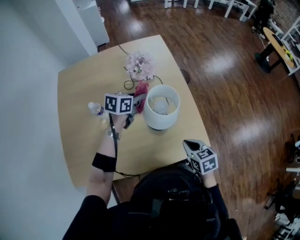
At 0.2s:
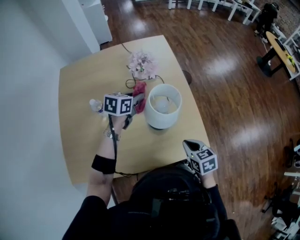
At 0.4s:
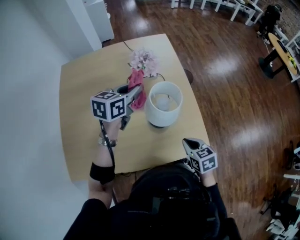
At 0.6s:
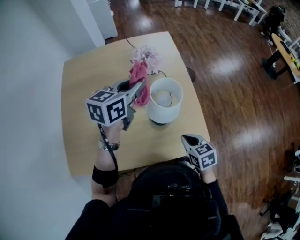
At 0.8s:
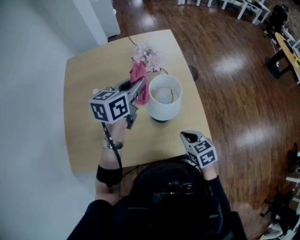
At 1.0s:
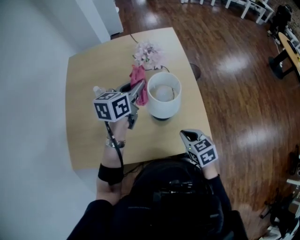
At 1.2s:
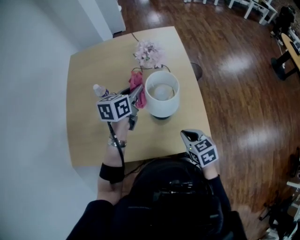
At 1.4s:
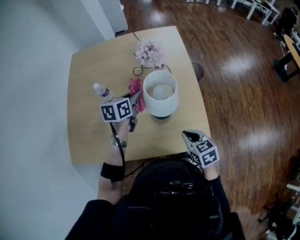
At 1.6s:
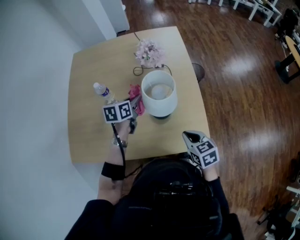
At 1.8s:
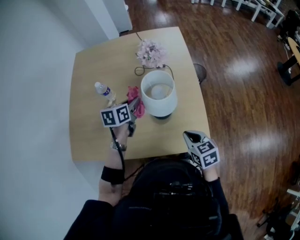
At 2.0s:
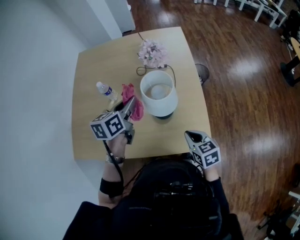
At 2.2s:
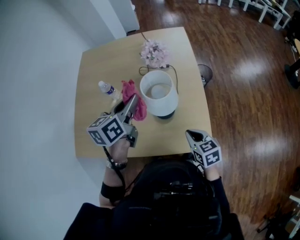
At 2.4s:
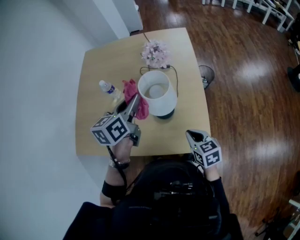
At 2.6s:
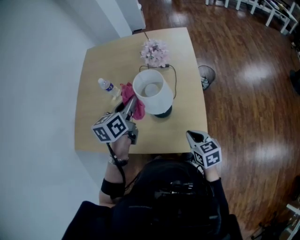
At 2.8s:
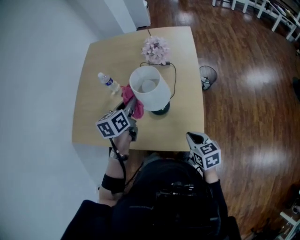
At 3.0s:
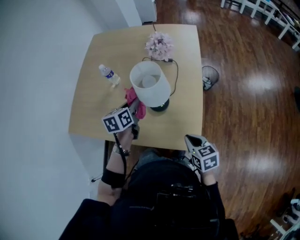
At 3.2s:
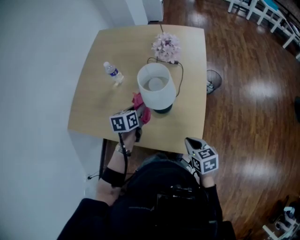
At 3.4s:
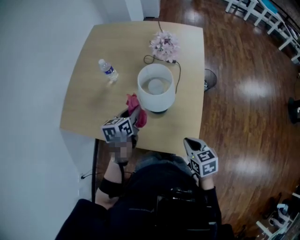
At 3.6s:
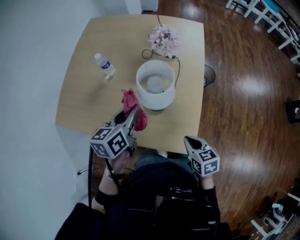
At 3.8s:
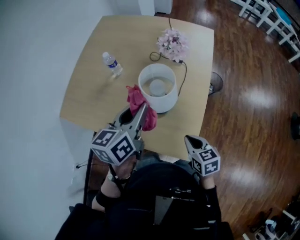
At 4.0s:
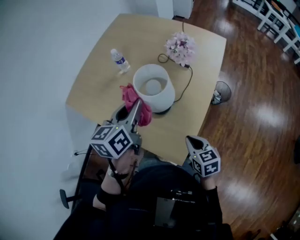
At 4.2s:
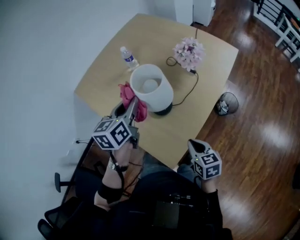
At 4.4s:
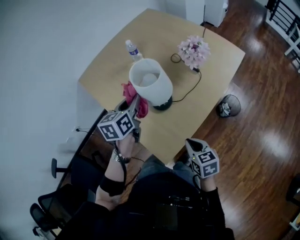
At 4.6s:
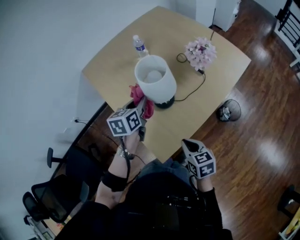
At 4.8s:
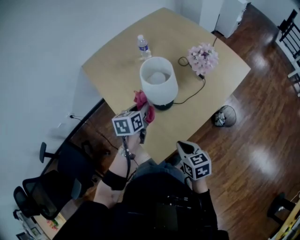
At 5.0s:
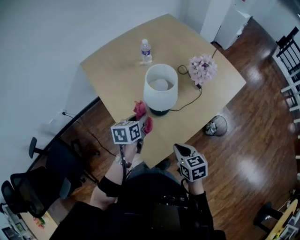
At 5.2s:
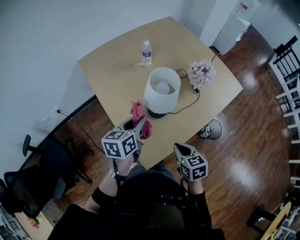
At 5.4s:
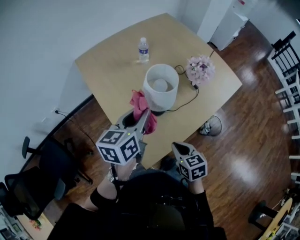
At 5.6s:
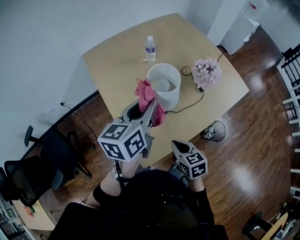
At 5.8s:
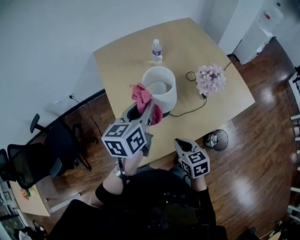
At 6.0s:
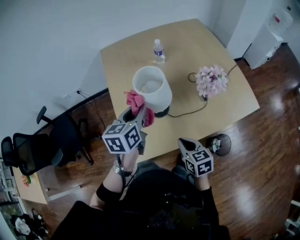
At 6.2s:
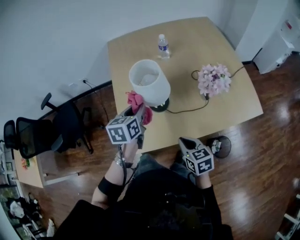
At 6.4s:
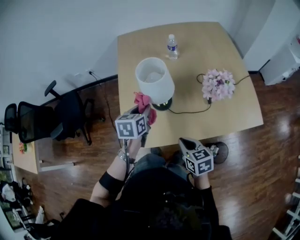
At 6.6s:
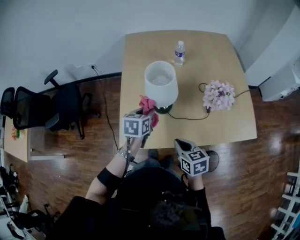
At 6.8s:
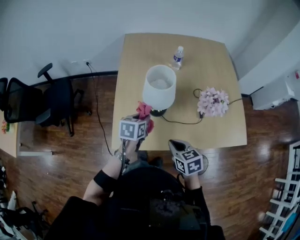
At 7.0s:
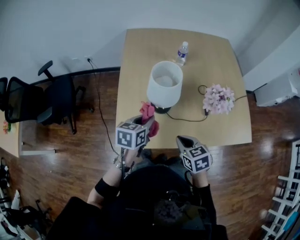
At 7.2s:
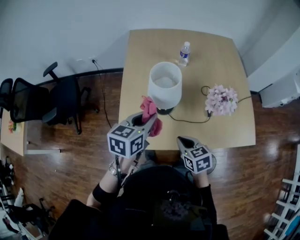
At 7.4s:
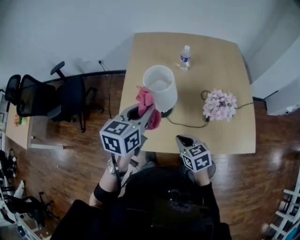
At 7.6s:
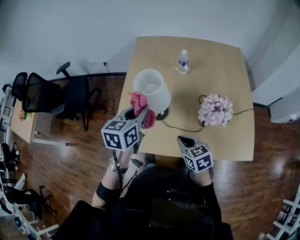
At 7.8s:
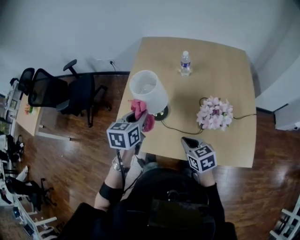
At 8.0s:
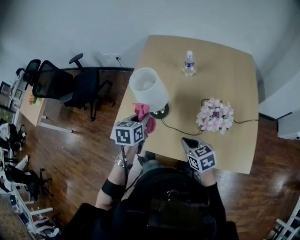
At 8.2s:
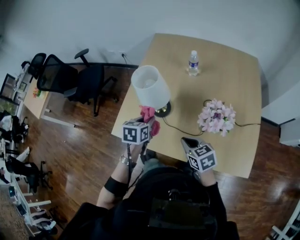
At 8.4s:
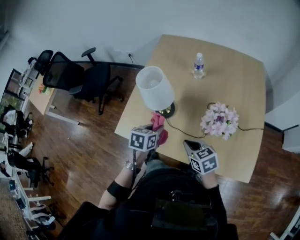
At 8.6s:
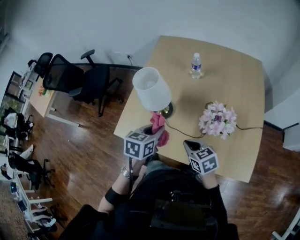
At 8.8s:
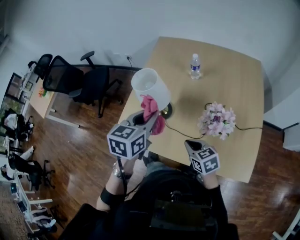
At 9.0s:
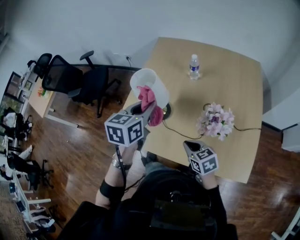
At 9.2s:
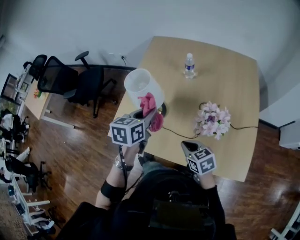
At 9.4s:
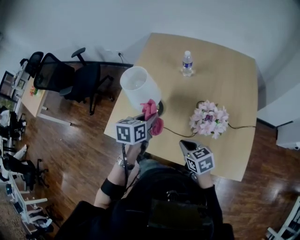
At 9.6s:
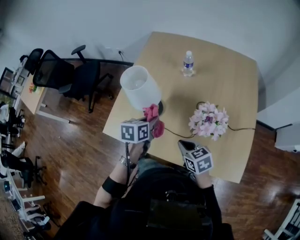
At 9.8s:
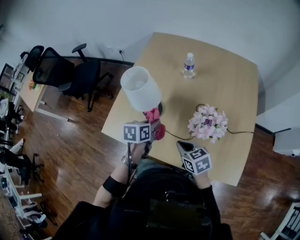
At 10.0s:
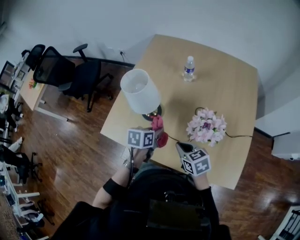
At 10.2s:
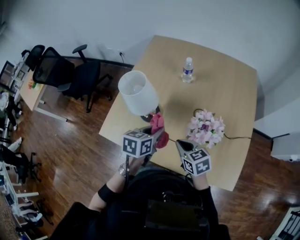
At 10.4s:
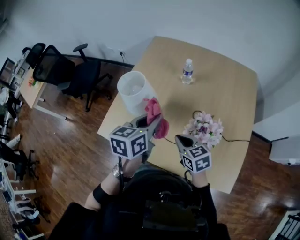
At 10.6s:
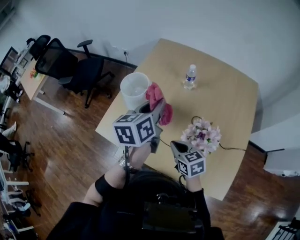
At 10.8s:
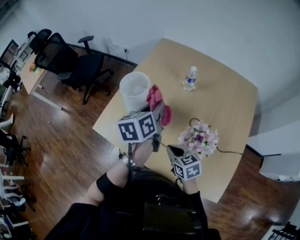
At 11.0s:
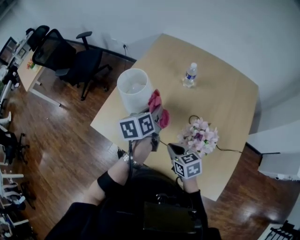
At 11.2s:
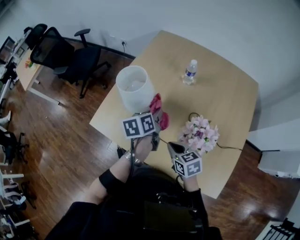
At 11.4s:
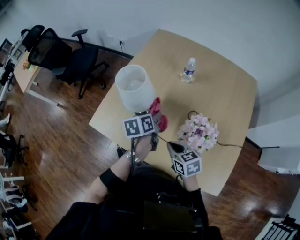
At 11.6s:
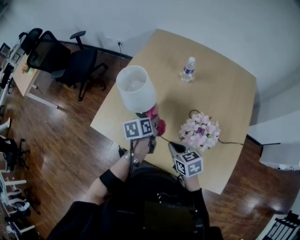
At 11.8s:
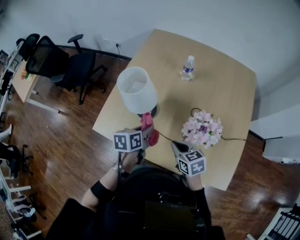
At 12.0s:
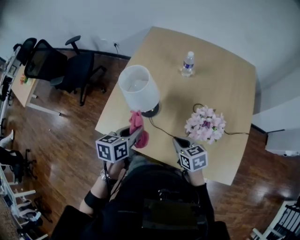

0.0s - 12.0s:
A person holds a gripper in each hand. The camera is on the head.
0.0s - 1.6s: The left gripper moves backward, roughly 5 cm, goes upward and returns, about 15 cm each way, and changes its angle by about 30 degrees.
1.6s - 3.0s: The left gripper travels backward by some 10 cm, travels upward and back again, about 15 cm each way, and turns by about 20 degrees, while the right gripper moves to the right, some 10 cm.
3.0s - 4.4s: The left gripper moves up and down over approximately 20 cm, changing direction 2 times, and rotates some 30 degrees. The right gripper moves some 15 cm, and rotates some 30 degrees.
4.4s - 6.0s: The right gripper changes place by some 10 cm, and swivels some 30 degrees, while the left gripper moves up and down over about 20 cm, changing direction 2 times, and changes its angle by roughly 30 degrees.
6.0s - 7.6s: The left gripper travels to the right by some 5 cm, and goes downward and returns, roughly 15 cm each way. Meanwhile the right gripper heads to the right and forward, covering approximately 10 cm, and changes its angle by approximately 30 degrees.
7.6s - 9.0s: The two grippers go roughly 10 cm to the right. The left gripper travels downward and back again, some 15 cm each way.
9.0s - 10.4s: The left gripper travels to the right by about 5 cm, and moves approximately 20 cm downward and comes back, while the right gripper moves forward, some 5 cm.
10.4s - 12.0s: The right gripper changes place by about 5 cm, while the left gripper moves up and down over roughly 20 cm, changing direction 2 times.

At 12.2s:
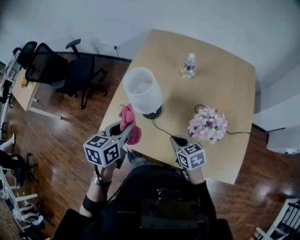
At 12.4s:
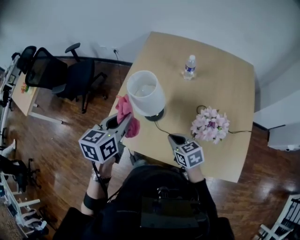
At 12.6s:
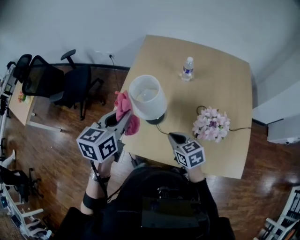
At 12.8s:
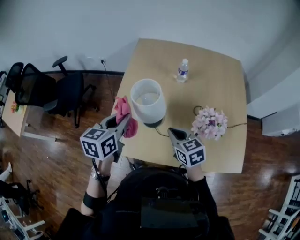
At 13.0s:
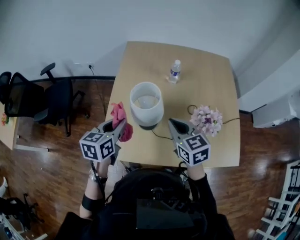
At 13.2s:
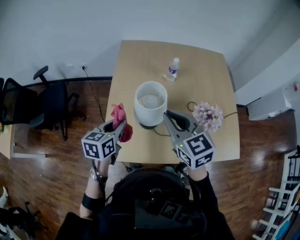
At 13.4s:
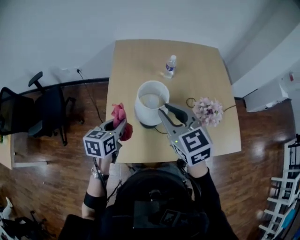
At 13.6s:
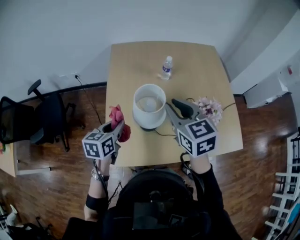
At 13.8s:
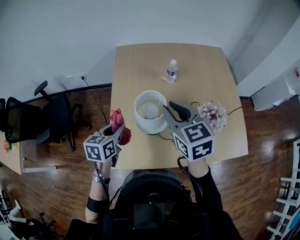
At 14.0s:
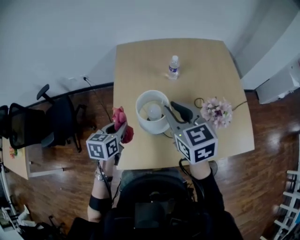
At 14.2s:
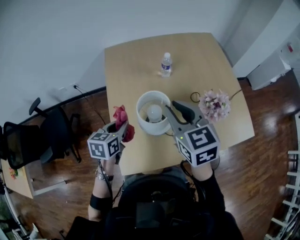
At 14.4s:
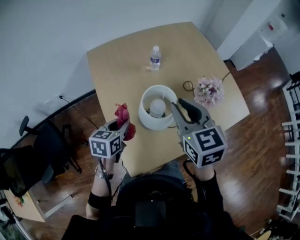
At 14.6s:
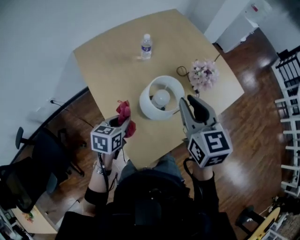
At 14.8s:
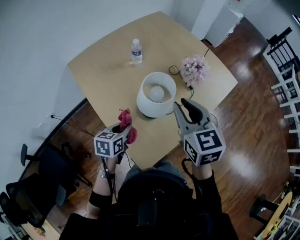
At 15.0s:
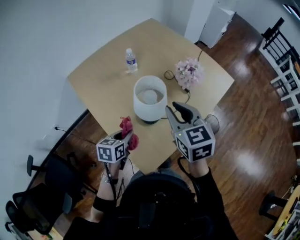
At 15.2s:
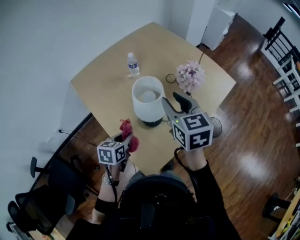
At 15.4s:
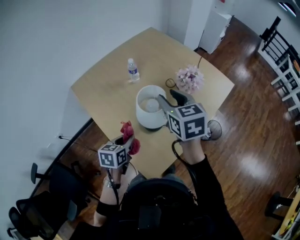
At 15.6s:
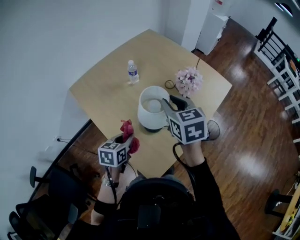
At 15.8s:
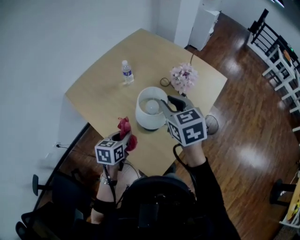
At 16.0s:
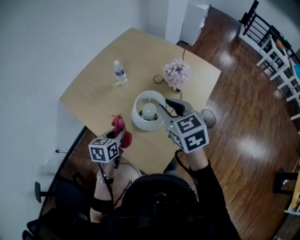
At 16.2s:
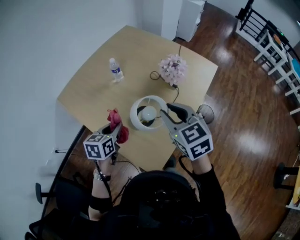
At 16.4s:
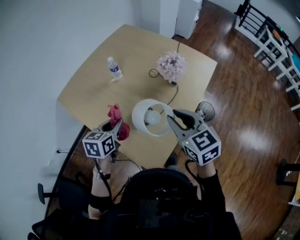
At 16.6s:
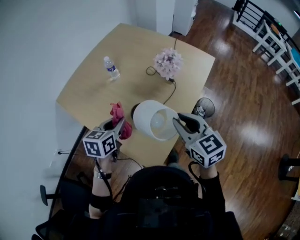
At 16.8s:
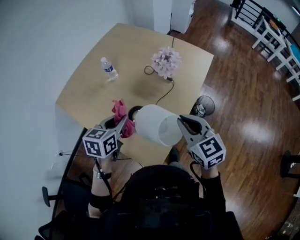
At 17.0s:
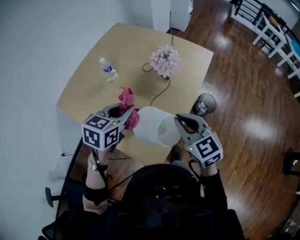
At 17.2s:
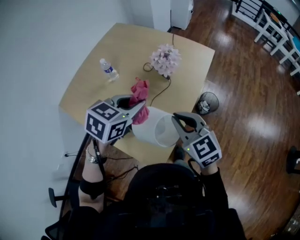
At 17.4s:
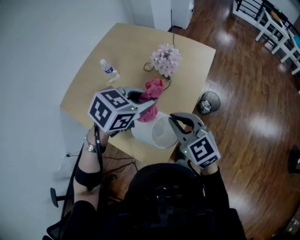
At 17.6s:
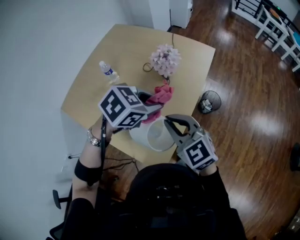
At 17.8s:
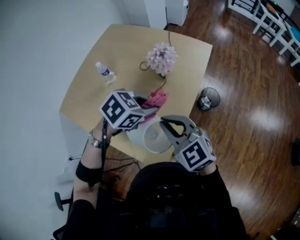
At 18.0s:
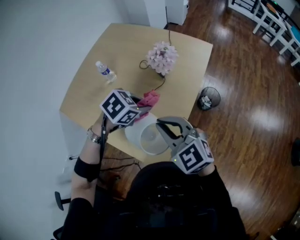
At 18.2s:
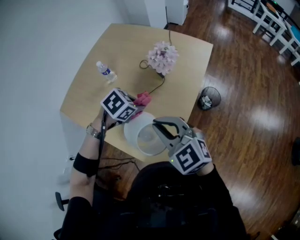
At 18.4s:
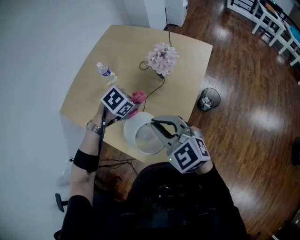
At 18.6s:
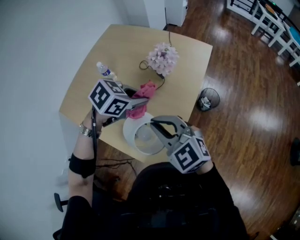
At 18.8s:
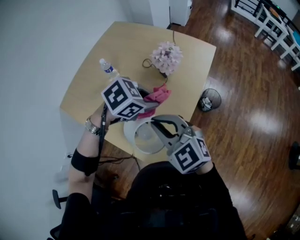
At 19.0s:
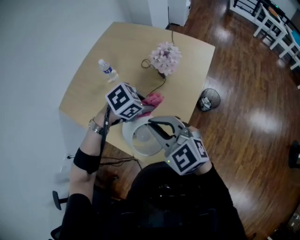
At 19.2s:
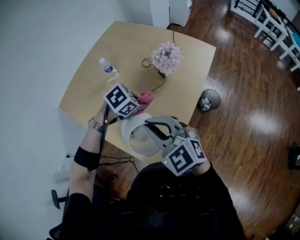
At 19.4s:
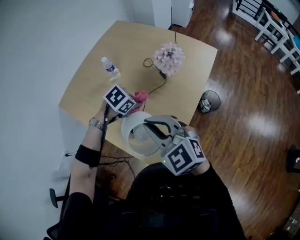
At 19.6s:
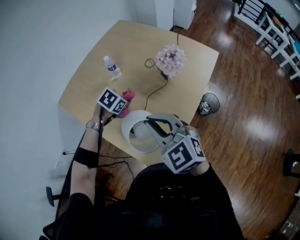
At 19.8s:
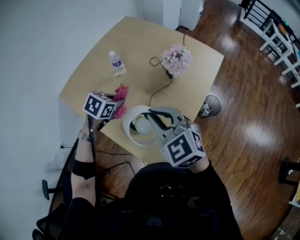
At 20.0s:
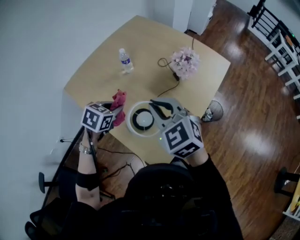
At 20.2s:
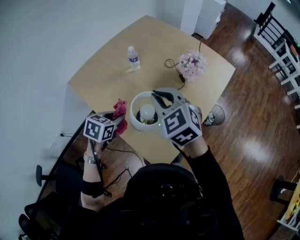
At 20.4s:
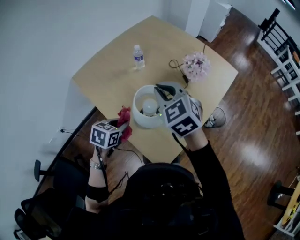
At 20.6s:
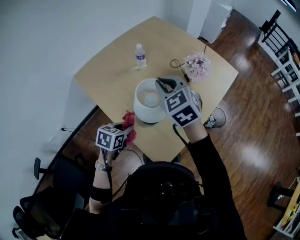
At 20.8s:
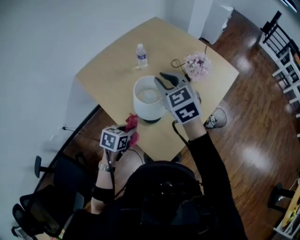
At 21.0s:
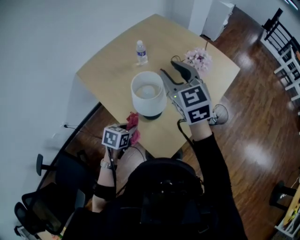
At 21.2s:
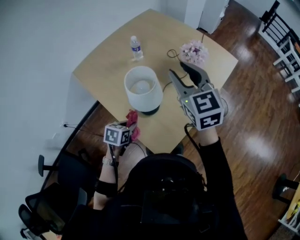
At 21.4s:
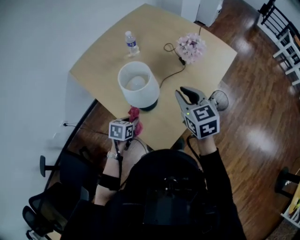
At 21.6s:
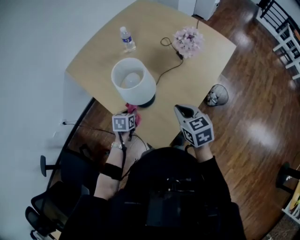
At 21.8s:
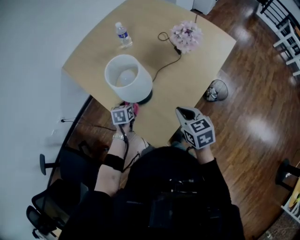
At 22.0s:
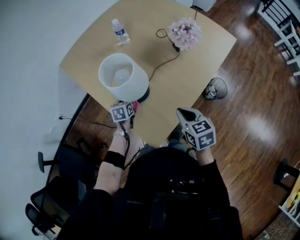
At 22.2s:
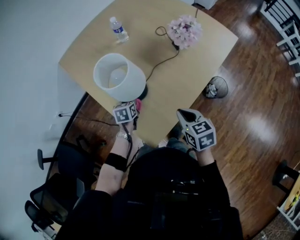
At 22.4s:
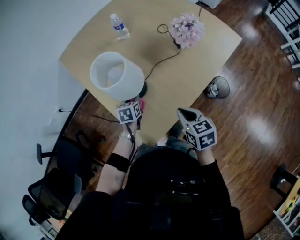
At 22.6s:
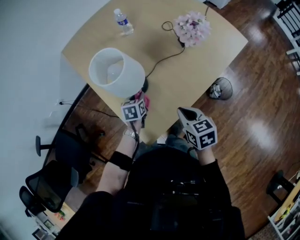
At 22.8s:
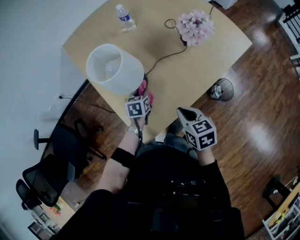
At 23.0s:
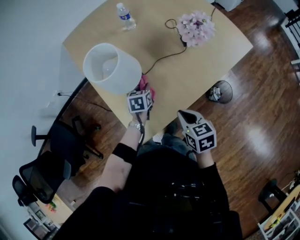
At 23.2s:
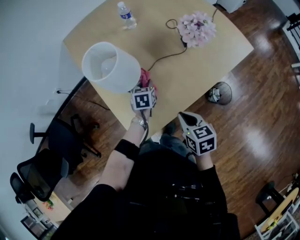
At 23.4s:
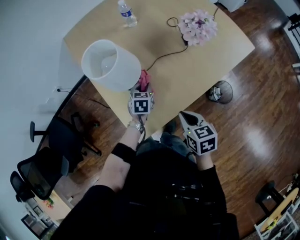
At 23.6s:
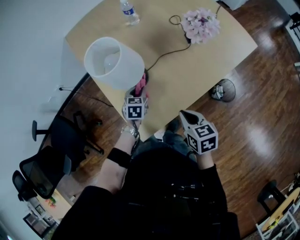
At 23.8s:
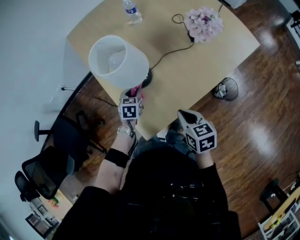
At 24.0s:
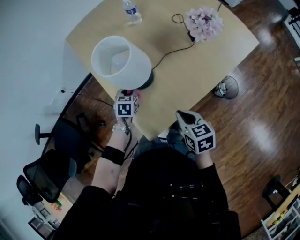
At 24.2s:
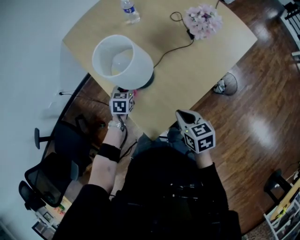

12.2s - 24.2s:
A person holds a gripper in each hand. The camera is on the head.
12.2s - 13.8s: The right gripper goes about 20 cm upward, rotates approximately 40 degrees, and opens its fingers; the left gripper shifts by some 20 cm.
13.8s - 15.2s: The right gripper swivels about 50 degrees. The left gripper heads downward, covering approximately 5 cm, and swivels about 40 degrees.
15.2s - 16.6s: The left gripper shifts approximately 10 cm upward; the right gripper goes approximately 15 cm backward and to the right.
16.6s - 18.2s: The right gripper travels to the left by about 5 cm, and turns by roughly 20 degrees; the left gripper goes about 15 cm to the right and forward, and tilts its fingers about 30 degrees downward.
18.2s - 19.8s: The right gripper shifts by approximately 5 cm, while the left gripper goes up and down, about 15 cm each way, reversing 2 times, and swivels about 30 degrees.
19.8s - 21.2s: The left gripper goes approximately 20 cm backward and downward, and swivels approximately 30 degrees; the right gripper shifts approximately 5 cm forward, and opens up.
21.2s - 22.6s: The right gripper shifts approximately 25 cm downward, rotates about 40 degrees, and closes. Meanwhile the left gripper shifts by roughly 15 cm, and swivels about 30 degrees.
22.6s - 24.2s: The left gripper shifts roughly 10 cm to the left; the right gripper shifts some 5 cm to the left.
